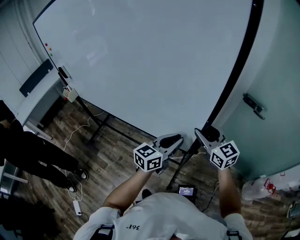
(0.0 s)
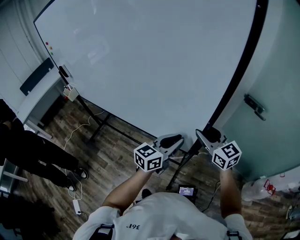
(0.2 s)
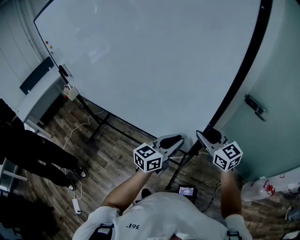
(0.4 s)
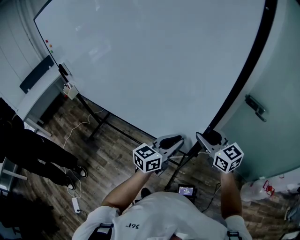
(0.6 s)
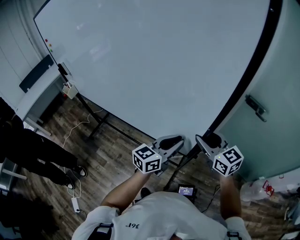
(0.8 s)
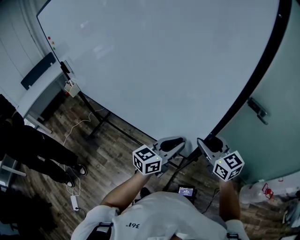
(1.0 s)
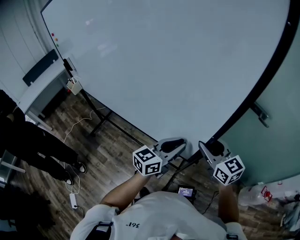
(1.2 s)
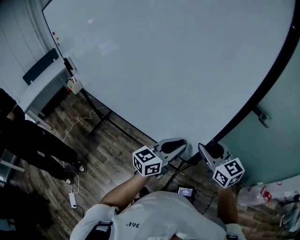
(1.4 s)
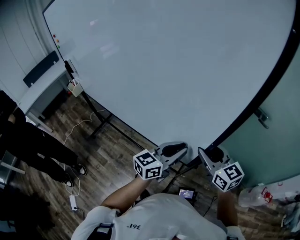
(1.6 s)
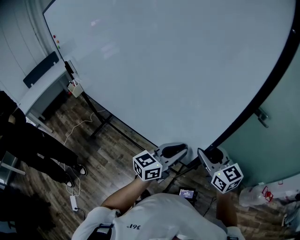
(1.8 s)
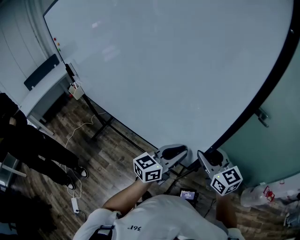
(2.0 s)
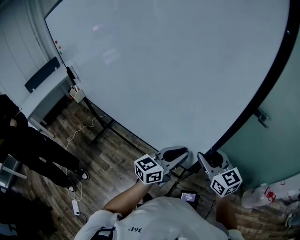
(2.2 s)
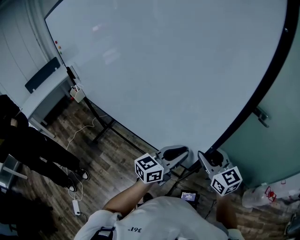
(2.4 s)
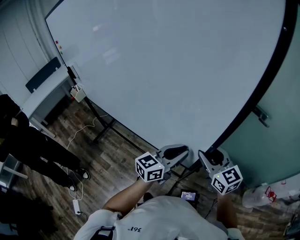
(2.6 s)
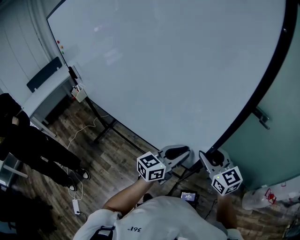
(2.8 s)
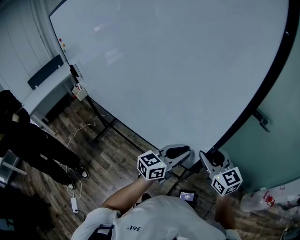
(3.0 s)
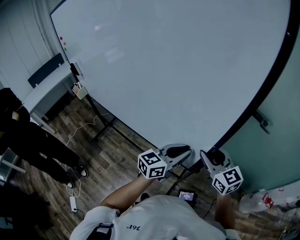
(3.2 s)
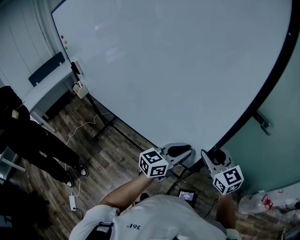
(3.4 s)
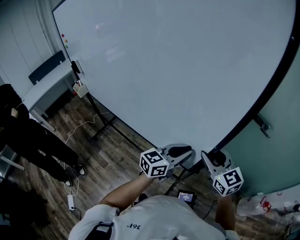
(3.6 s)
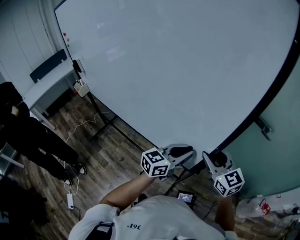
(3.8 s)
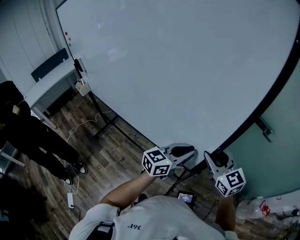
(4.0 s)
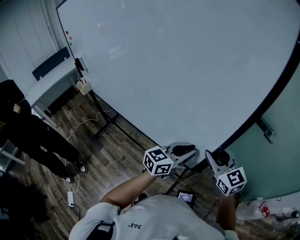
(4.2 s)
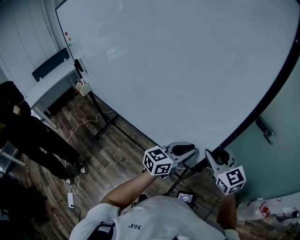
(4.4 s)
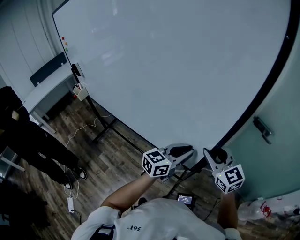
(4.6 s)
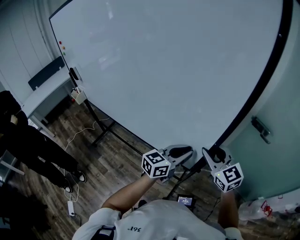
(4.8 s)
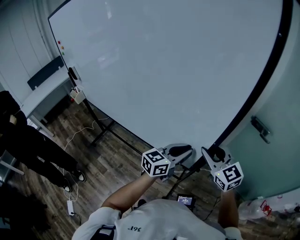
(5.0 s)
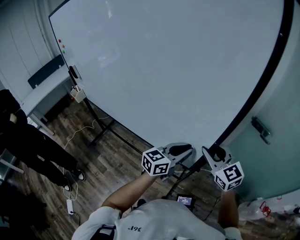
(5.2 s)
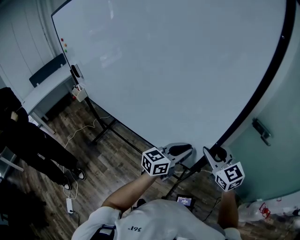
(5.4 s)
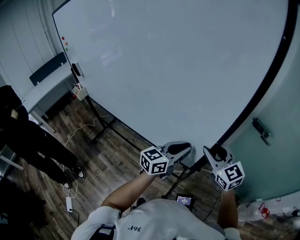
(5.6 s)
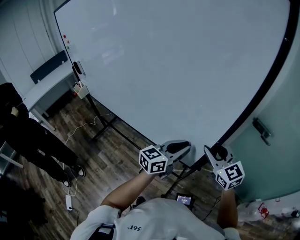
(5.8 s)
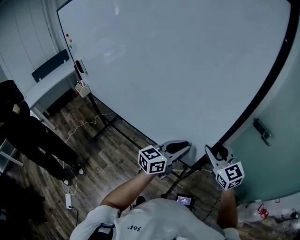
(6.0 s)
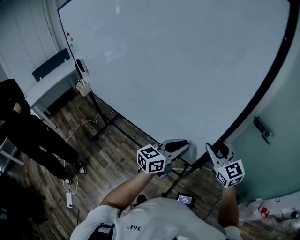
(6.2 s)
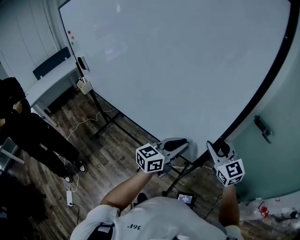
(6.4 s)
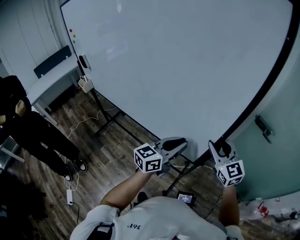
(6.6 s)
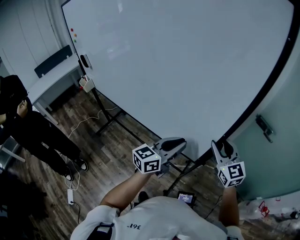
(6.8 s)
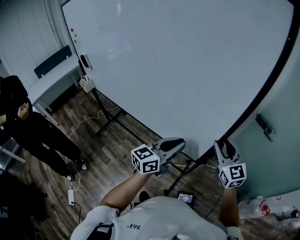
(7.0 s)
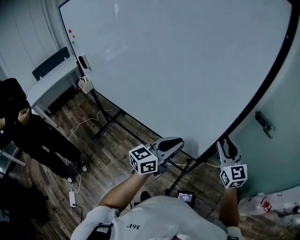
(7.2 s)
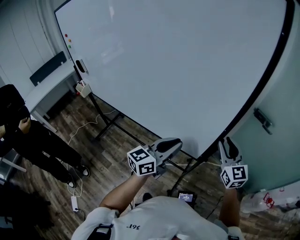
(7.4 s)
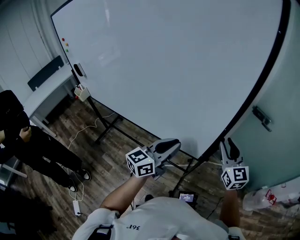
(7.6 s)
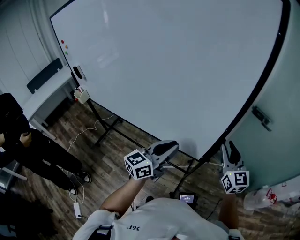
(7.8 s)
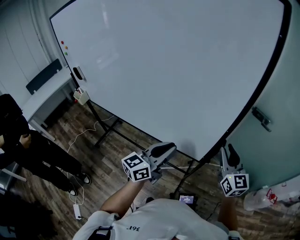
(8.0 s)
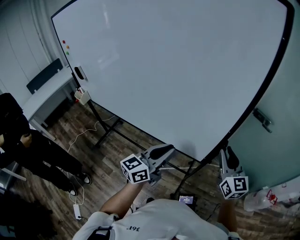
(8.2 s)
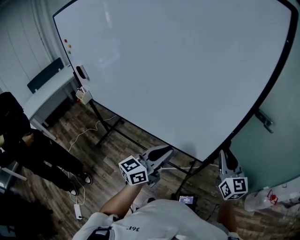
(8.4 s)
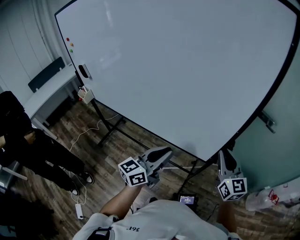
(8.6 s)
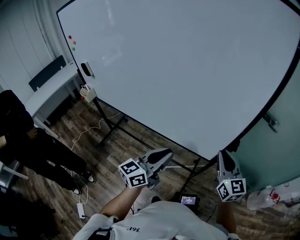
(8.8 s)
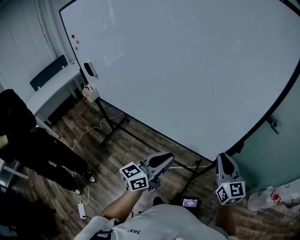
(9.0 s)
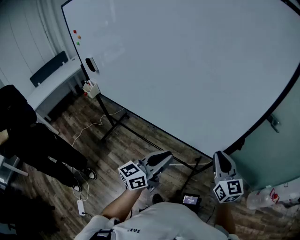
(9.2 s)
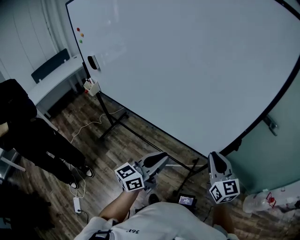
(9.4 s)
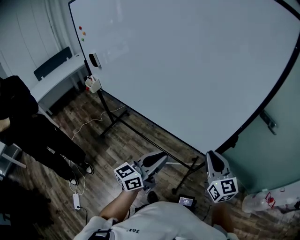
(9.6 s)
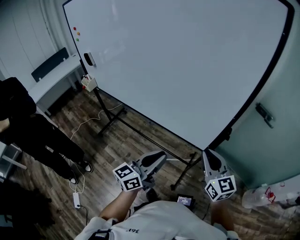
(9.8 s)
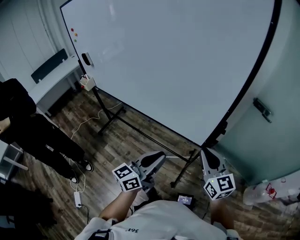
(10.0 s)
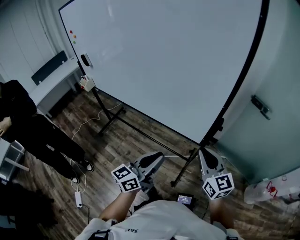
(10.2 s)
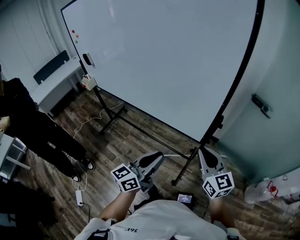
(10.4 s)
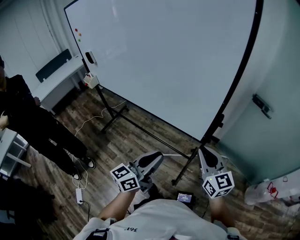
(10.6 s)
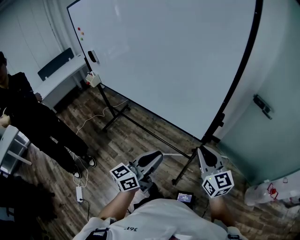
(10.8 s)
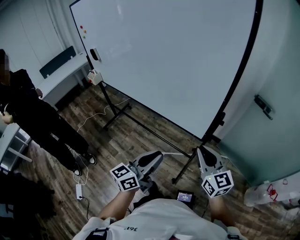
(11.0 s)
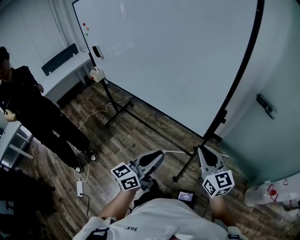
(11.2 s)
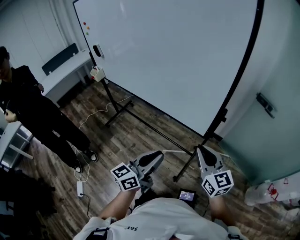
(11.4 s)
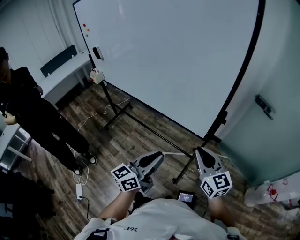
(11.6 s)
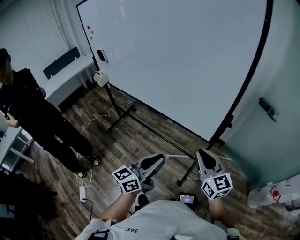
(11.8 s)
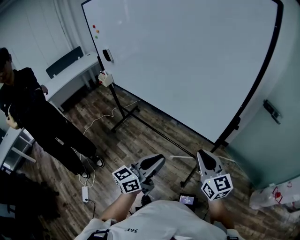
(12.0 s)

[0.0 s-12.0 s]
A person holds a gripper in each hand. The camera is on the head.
0.0 to 1.6 s: The right gripper moves backward, about 5 cm.
1.6 to 3.0 s: The grippers stay close to where they were, moving slightly.
3.0 to 4.4 s: Both grippers move forward, approximately 5 cm.
4.4 to 6.0 s: The grippers stay close to where they were, moving slightly.
6.0 to 7.6 s: The right gripper shifts by about 5 cm, and turns by about 20 degrees; the left gripper goes approximately 10 cm to the left and backward.
7.6 to 9.0 s: Both grippers travel together to the left and backward, about 15 cm. The right gripper closes.
9.0 to 10.4 s: The right gripper goes approximately 10 cm backward, while the left gripper travels backward and to the right by about 15 cm.
10.4 to 12.0 s: Both grippers move to the left, approximately 10 cm.

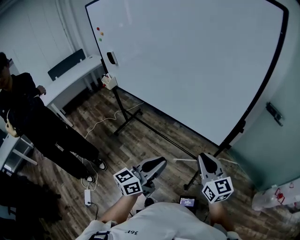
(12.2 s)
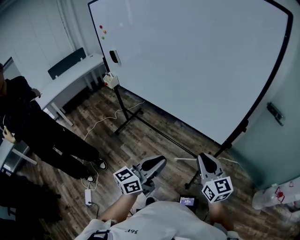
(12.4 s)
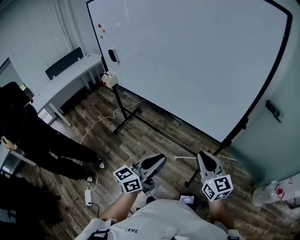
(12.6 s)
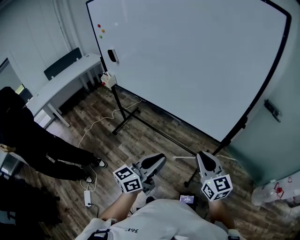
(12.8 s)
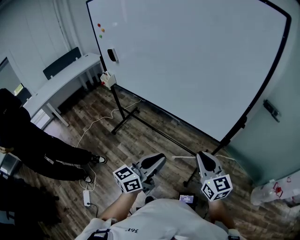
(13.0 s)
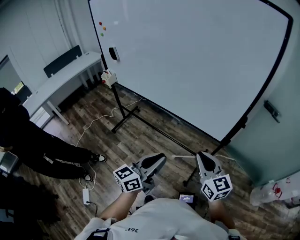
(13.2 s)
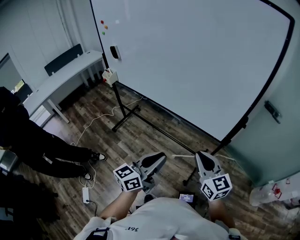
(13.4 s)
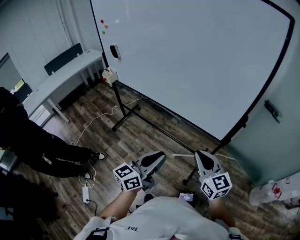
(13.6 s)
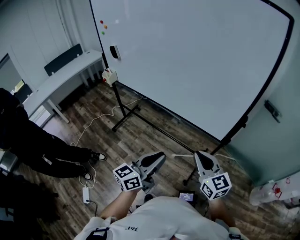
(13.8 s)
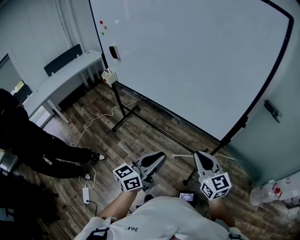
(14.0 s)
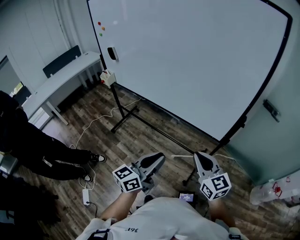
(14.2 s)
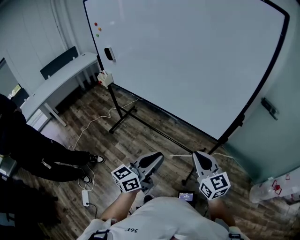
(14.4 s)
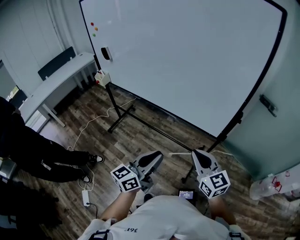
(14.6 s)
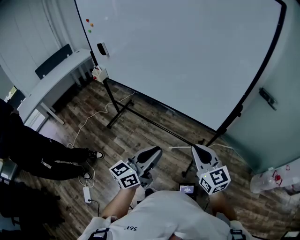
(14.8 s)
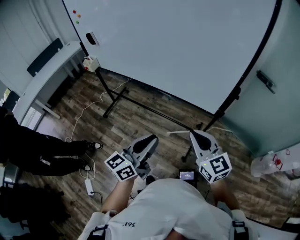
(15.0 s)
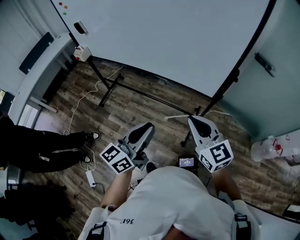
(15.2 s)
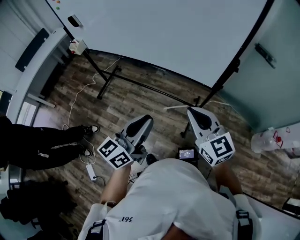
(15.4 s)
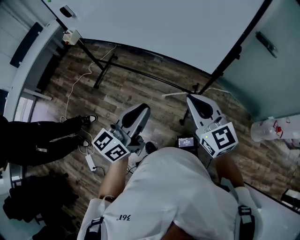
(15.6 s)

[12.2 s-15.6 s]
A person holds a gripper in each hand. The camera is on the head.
12.2 to 13.8 s: The right gripper is displaced to the left by roughly 5 cm.
13.8 to 15.6 s: The grippers stay close to where they were, moving slightly.

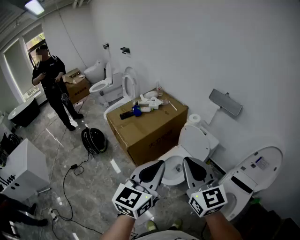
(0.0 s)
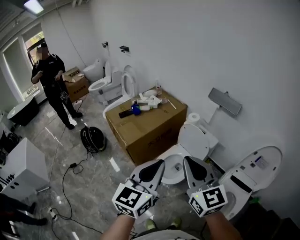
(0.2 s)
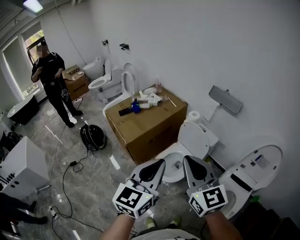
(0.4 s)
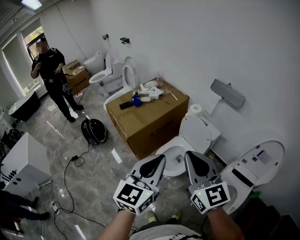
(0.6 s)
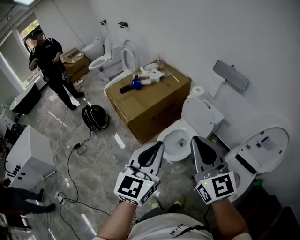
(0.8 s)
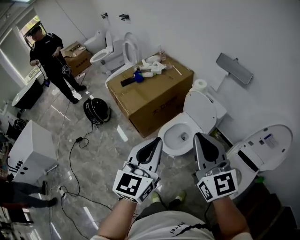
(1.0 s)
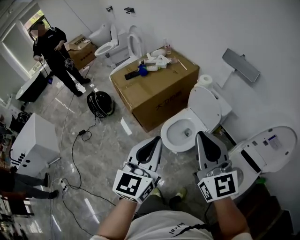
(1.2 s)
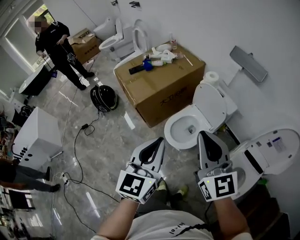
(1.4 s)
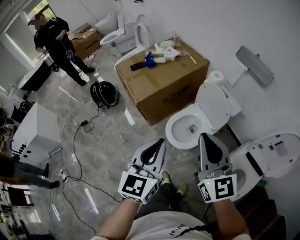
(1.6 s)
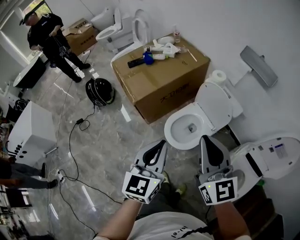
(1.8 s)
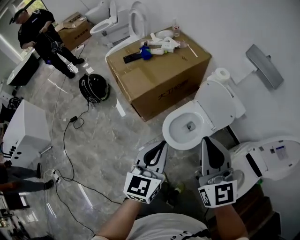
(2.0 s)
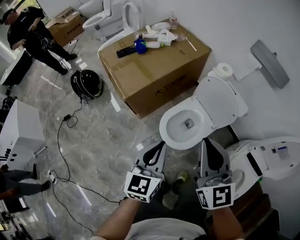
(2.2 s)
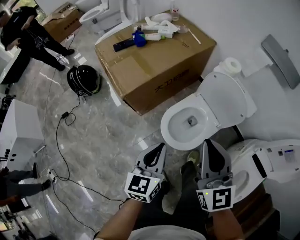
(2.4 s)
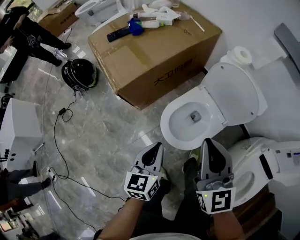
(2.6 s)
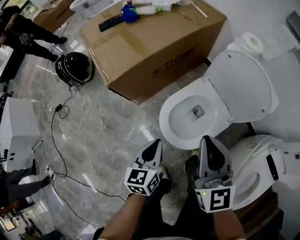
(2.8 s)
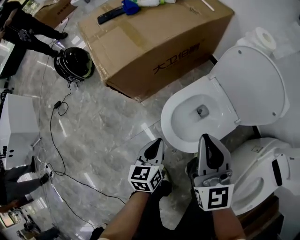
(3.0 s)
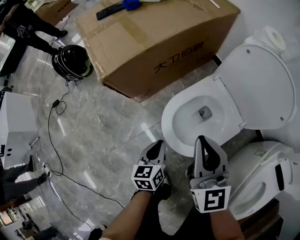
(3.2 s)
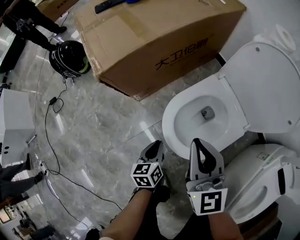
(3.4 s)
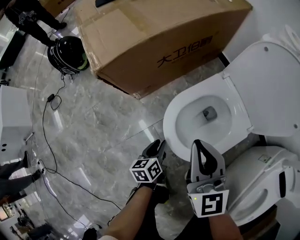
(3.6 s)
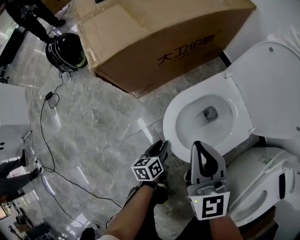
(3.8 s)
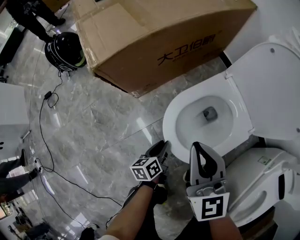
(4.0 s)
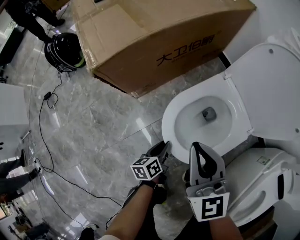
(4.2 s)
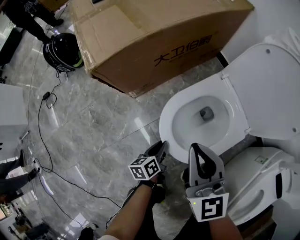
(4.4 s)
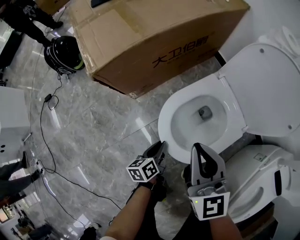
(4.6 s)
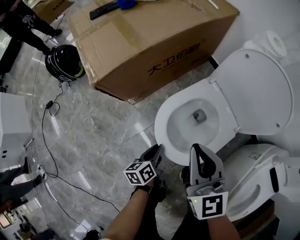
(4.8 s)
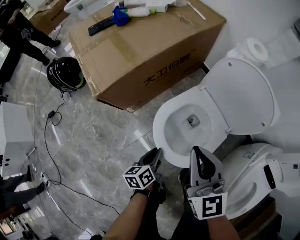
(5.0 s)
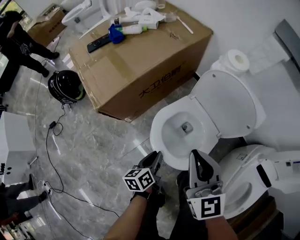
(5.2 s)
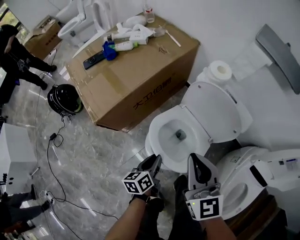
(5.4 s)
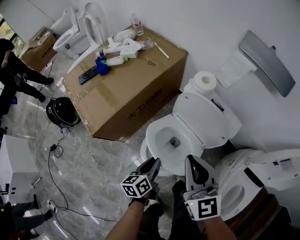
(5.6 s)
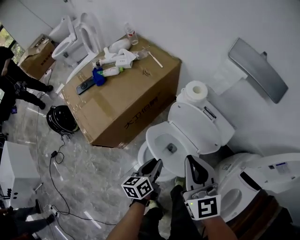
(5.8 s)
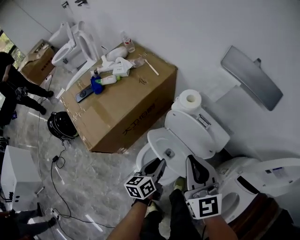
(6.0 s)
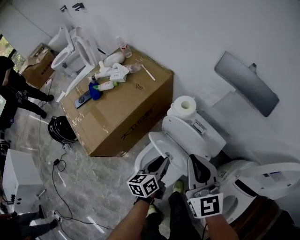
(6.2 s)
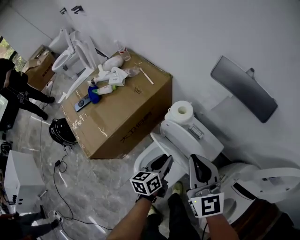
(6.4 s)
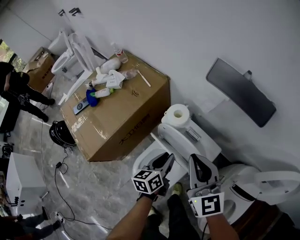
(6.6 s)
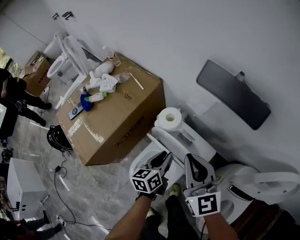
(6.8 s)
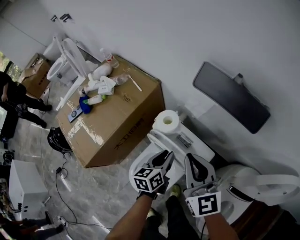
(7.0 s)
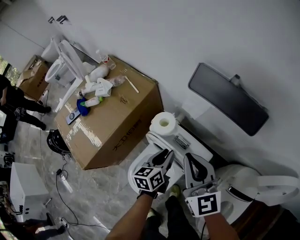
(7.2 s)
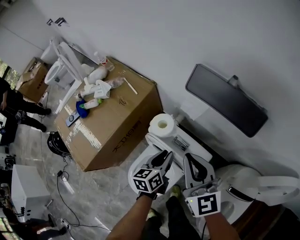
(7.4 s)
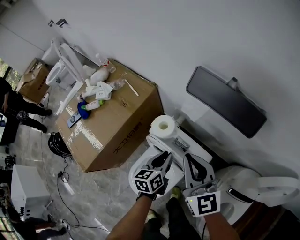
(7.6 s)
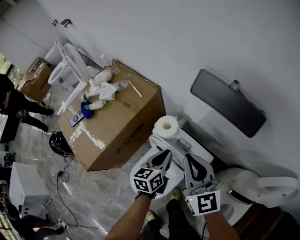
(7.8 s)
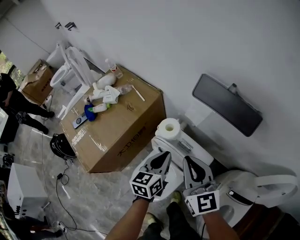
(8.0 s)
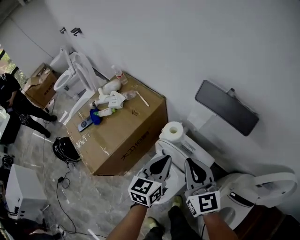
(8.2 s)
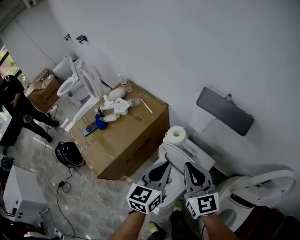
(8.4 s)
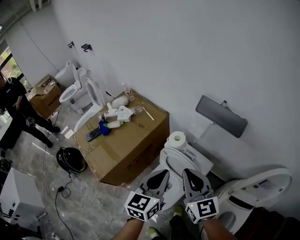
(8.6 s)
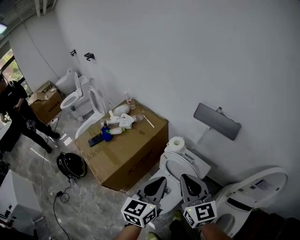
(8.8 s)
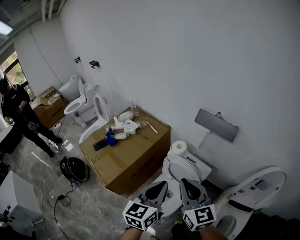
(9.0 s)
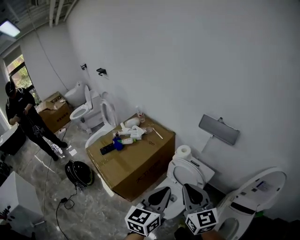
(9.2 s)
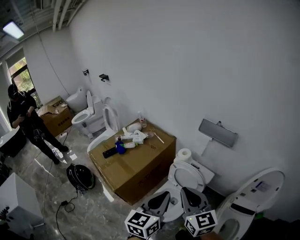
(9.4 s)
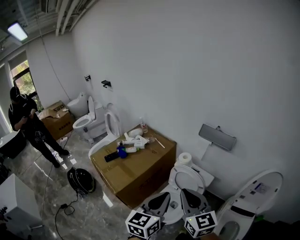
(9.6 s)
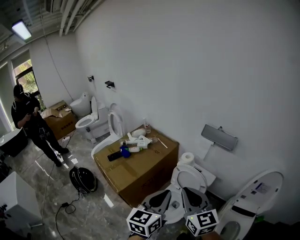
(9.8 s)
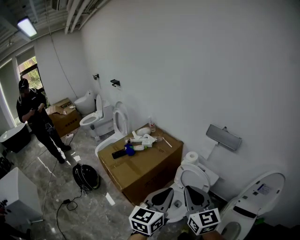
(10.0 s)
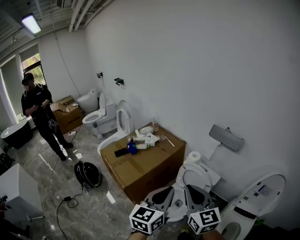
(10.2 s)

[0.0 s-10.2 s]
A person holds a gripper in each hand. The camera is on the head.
0.0 to 1.4 s: Both grippers travel together downward, approximately 10 cm.
1.4 to 3.0 s: The left gripper is displaced downward by about 60 cm, and turns by approximately 40 degrees. Meanwhile the right gripper shifts about 50 cm downward and forward.
3.0 to 4.4 s: The right gripper heads downward, covering approximately 10 cm, while the left gripper heads downward, covering roughly 20 cm, and turns by roughly 30 degrees.
4.4 to 5.8 s: The right gripper goes approximately 35 cm upward and to the right. The left gripper goes some 35 cm upward, and turns by some 20 degrees.
5.8 to 7.2 s: Both grippers travel together forward and to the right, about 25 cm.
7.2 to 8.8 s: The left gripper travels upward and backward by about 35 cm, changes its angle by about 30 degrees, and closes. Meanwhile the right gripper shifts roughly 25 cm backward, upward and to the left.
8.8 to 10.2 s: The right gripper is displaced backward, to the left and upward by some 25 cm. Meanwhile the left gripper goes some 25 cm backward, upward and to the left.
